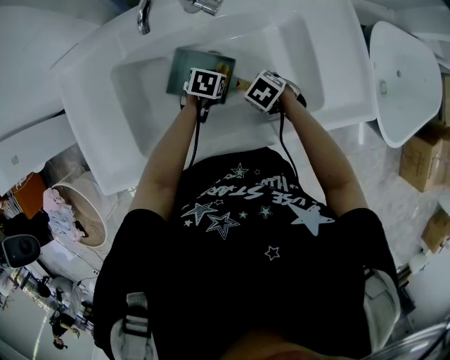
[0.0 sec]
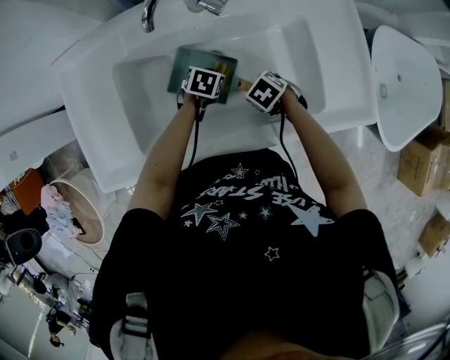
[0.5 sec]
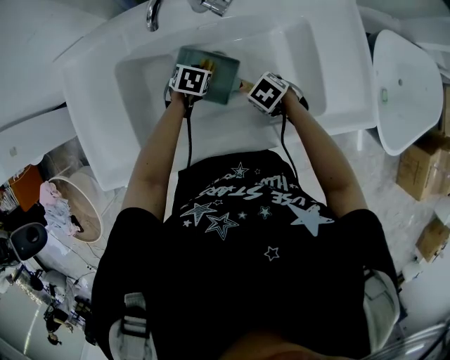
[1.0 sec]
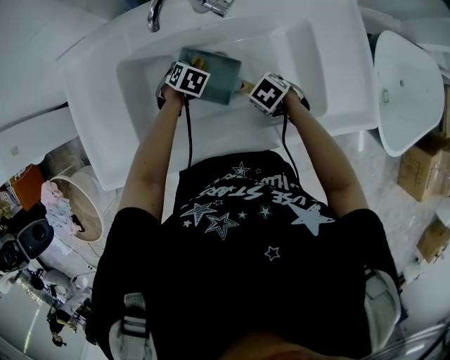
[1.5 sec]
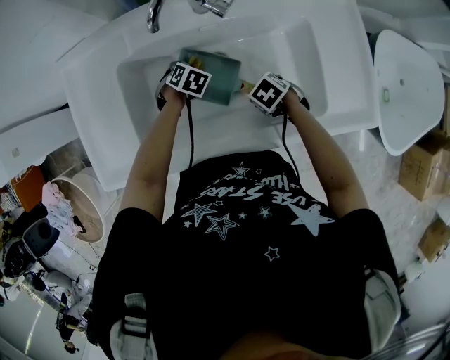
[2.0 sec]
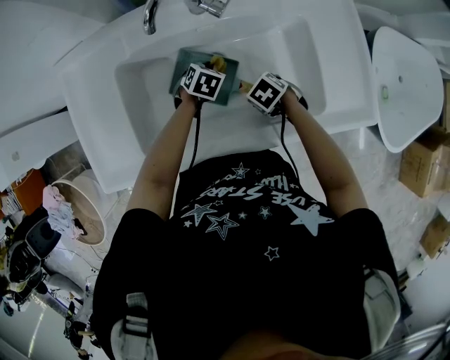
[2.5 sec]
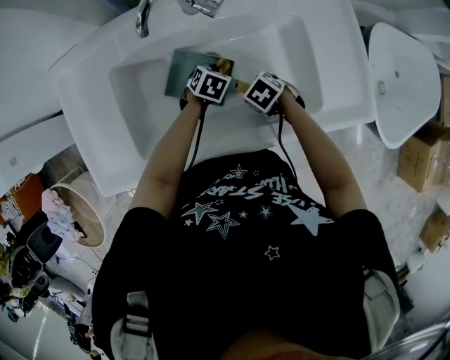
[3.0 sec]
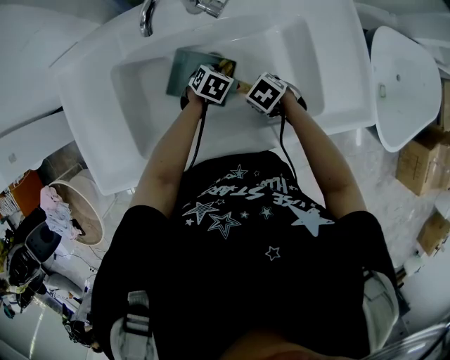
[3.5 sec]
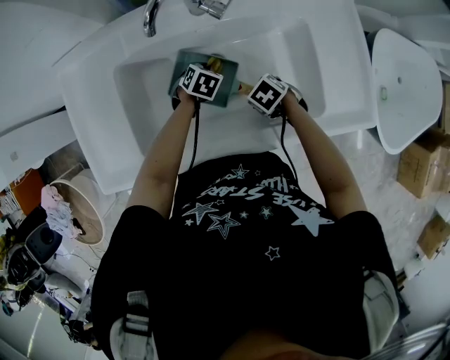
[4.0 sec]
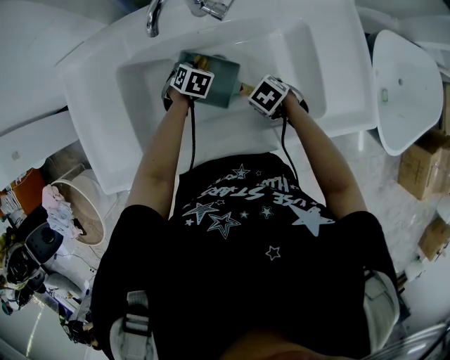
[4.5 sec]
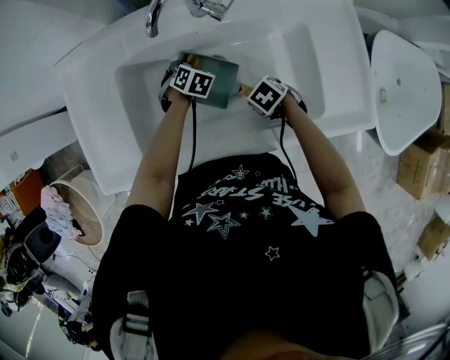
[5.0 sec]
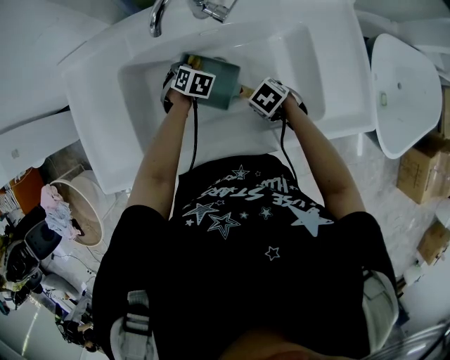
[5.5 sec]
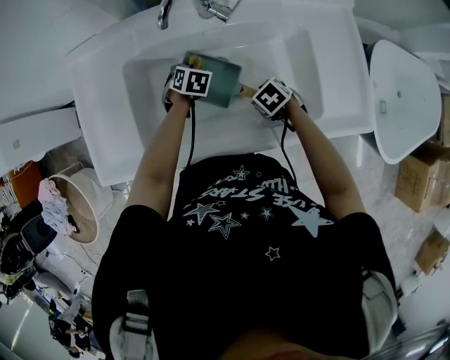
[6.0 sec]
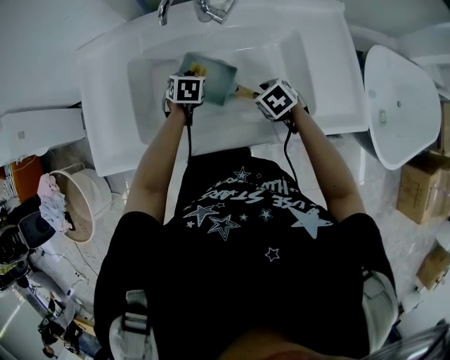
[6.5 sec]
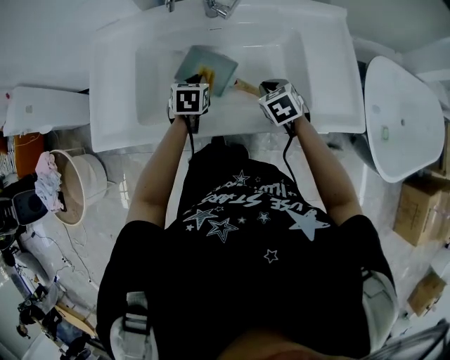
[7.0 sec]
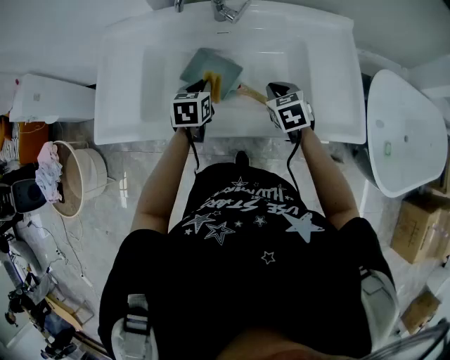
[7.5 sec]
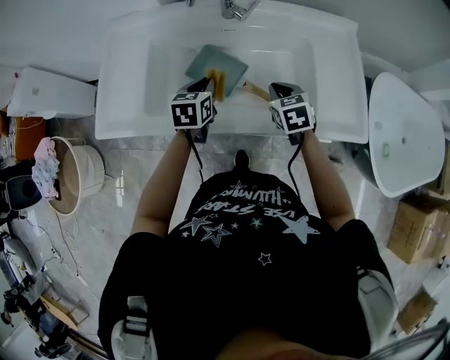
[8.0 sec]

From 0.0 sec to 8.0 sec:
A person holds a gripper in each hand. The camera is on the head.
From 0.0 sec to 2.0 sec: The left gripper ends up roughly 10 cm from where it was, and rotates some 30 degrees.
From 4.0 sec to 6.0 sec: The left gripper changes place by about 10 cm.
From 6.0 sec to 8.0 sec: The grippers both shift upward by some 15 cm. The right gripper rotates approximately 40 degrees, and closes; the left gripper turns by about 40 degrees.

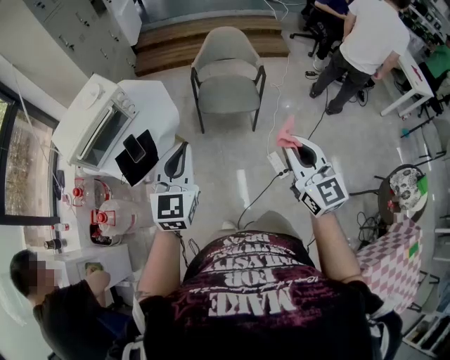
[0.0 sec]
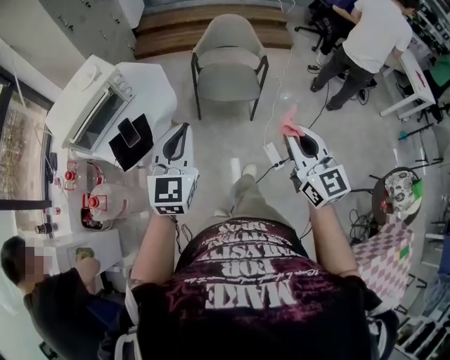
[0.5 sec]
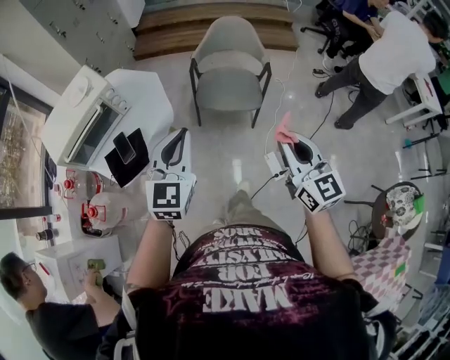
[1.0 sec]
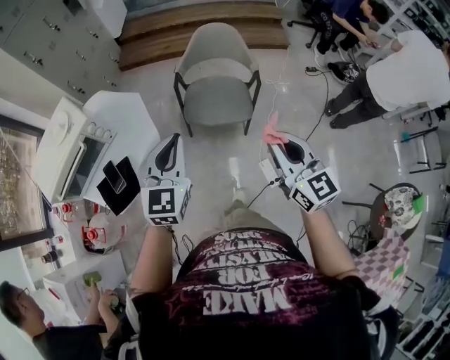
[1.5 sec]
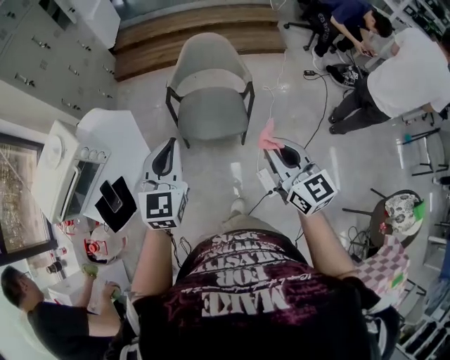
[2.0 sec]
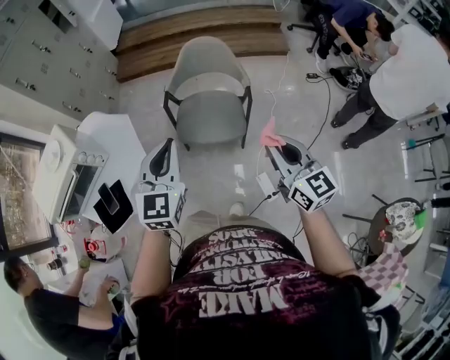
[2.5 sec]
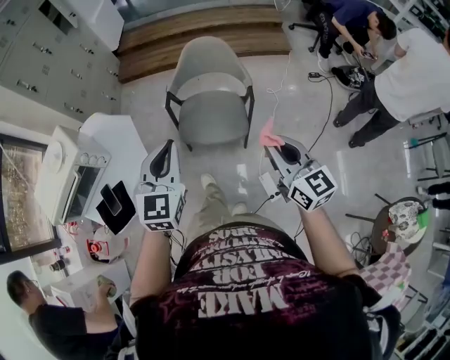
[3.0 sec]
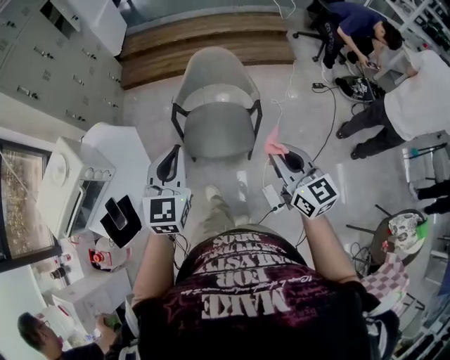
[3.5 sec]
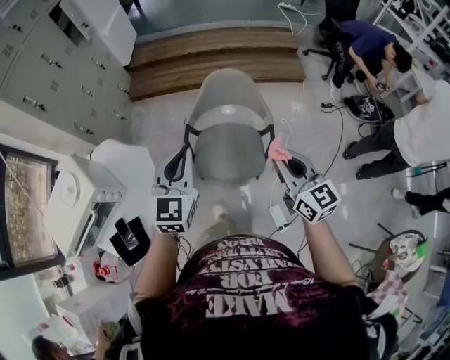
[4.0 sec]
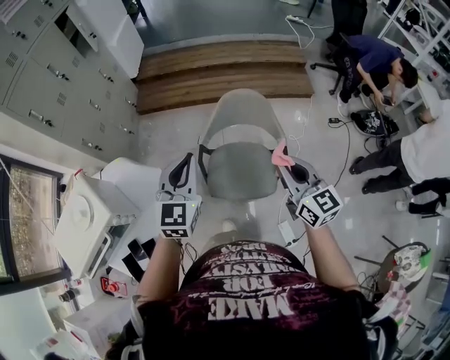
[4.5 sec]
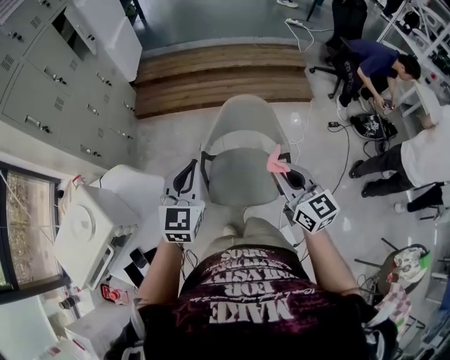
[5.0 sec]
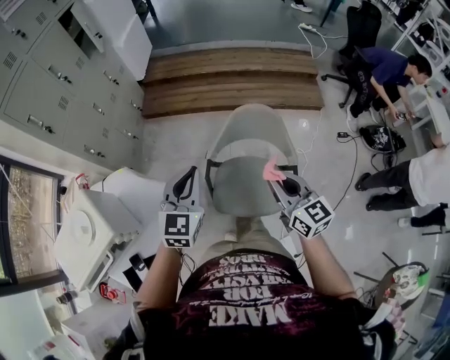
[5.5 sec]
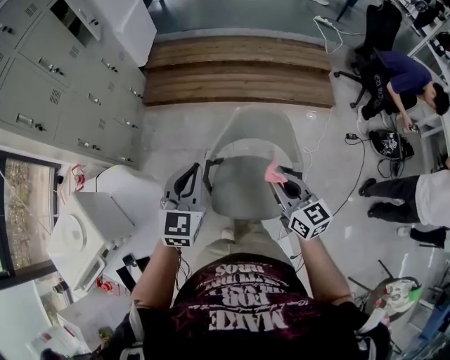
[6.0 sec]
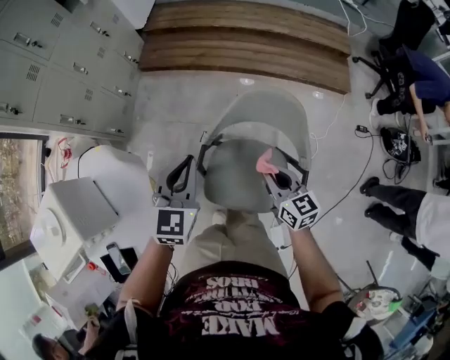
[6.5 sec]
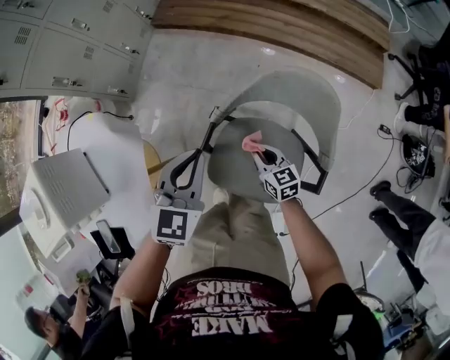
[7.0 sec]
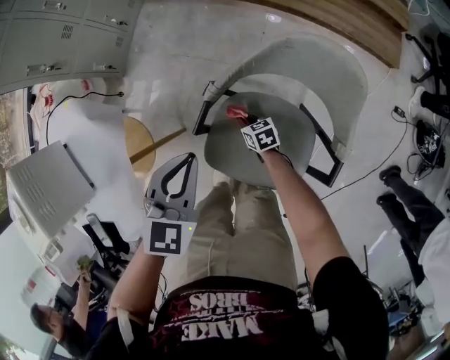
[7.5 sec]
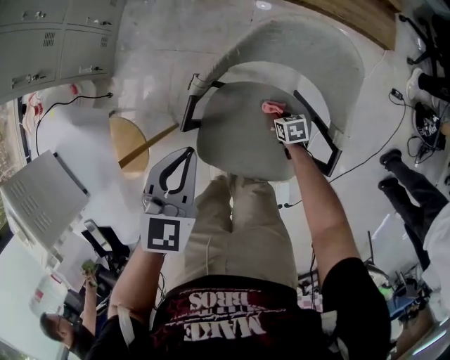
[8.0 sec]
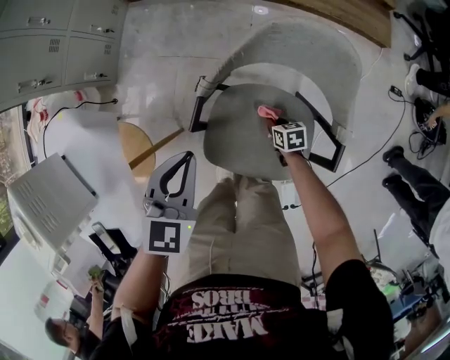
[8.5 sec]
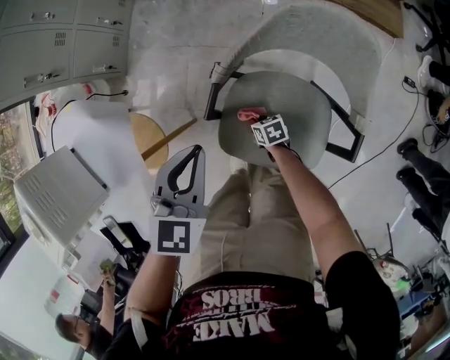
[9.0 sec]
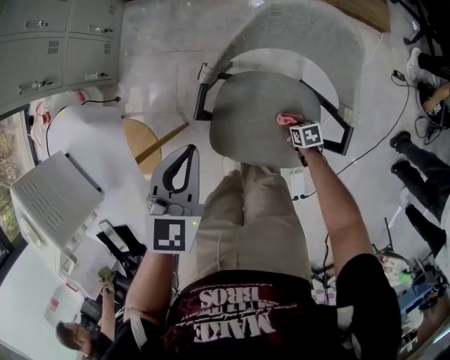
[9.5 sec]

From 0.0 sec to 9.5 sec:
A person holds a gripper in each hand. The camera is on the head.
From 0.0 sec to 2.0 sec: The grippers both shift forward and to the right by approximately 30 cm.
From 2.0 sec to 4.0 sec: Both grippers travel together forward, about 20 cm.
From 4.0 sec to 5.5 sec: The two grippers go approximately 15 cm forward and to the left.
From 5.5 sec to 7.5 sec: The left gripper shifts approximately 30 cm downward, and changes its angle by roughly 20 degrees. The right gripper travels downward by some 60 cm, and tilts its fingers approximately 40 degrees downward.
From 7.5 sec to 9.5 sec: The right gripper goes left and right, about 20 cm each way, reversing 2 times, and rotates approximately 30 degrees.

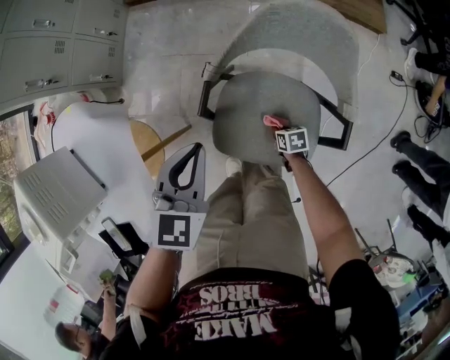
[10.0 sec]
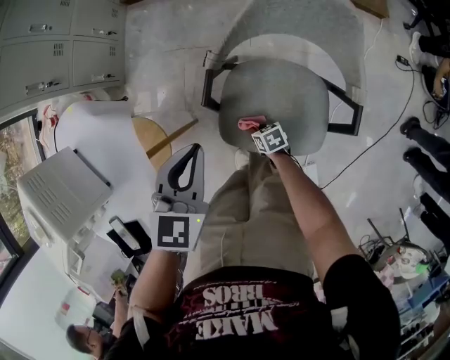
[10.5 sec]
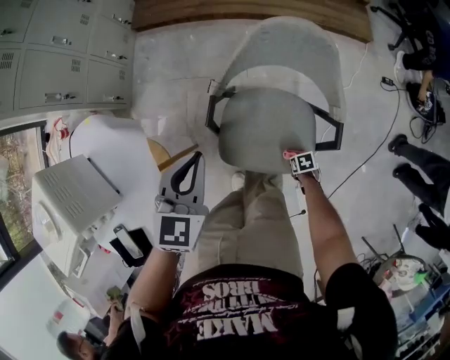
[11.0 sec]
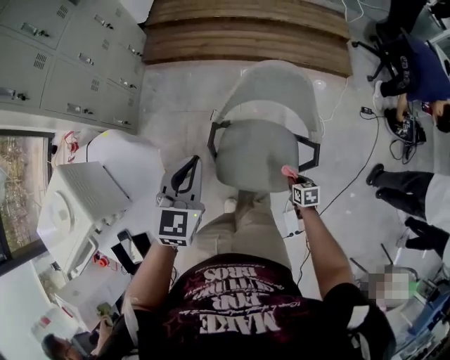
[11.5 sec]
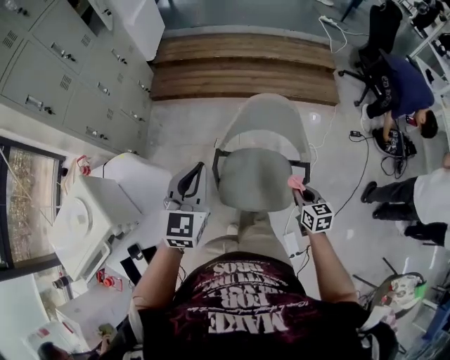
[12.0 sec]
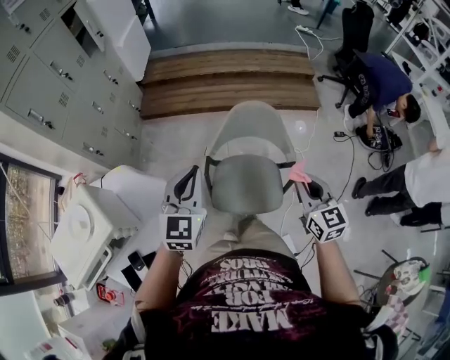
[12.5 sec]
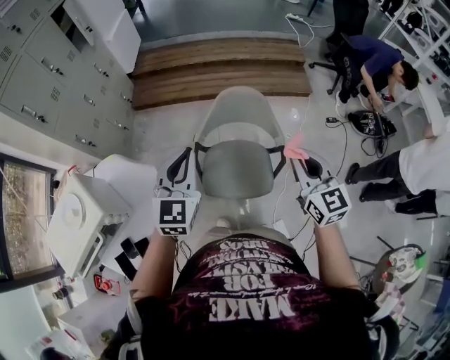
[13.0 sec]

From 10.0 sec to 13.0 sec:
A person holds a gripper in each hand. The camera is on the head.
From 10.0 sec to 11.5 sec: Both grippers travel together upward, approximately 15 cm.
From 11.5 sec to 13.0 sec: The left gripper travels upward by some 15 cm, while the right gripper shifts roughly 50 cm upward, and points its fingers some 50 degrees further upward.

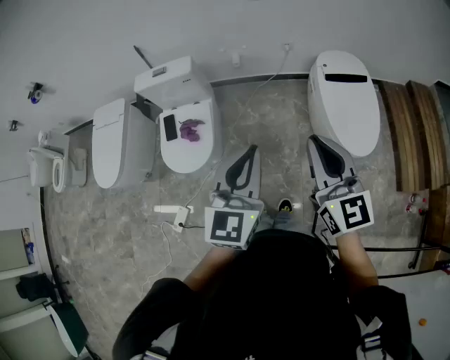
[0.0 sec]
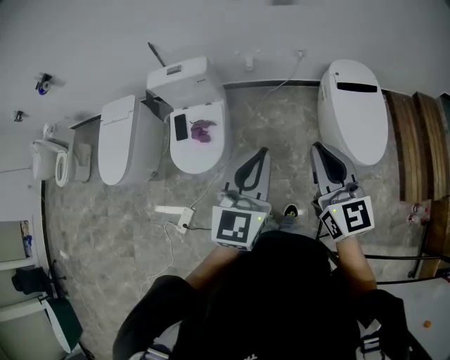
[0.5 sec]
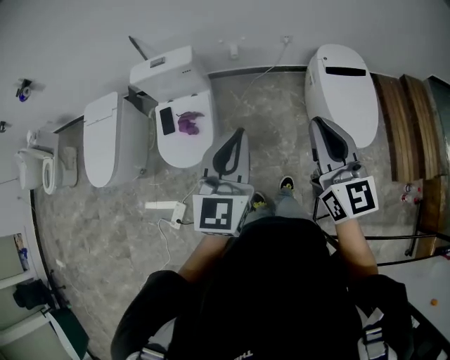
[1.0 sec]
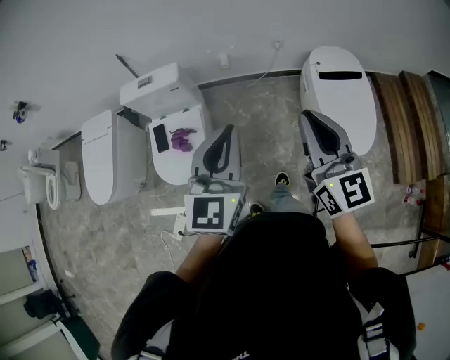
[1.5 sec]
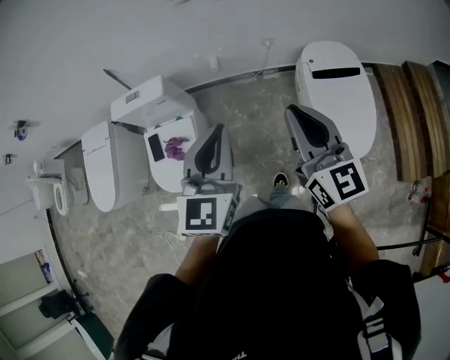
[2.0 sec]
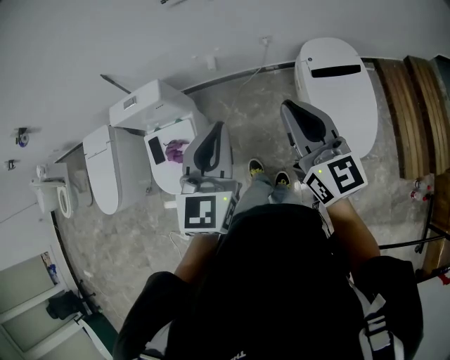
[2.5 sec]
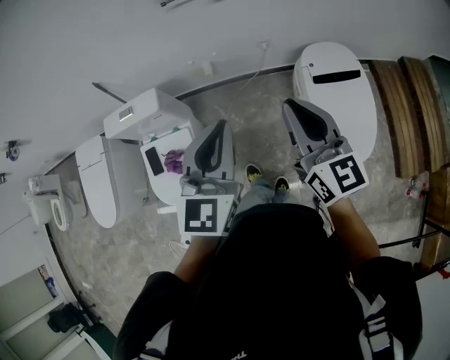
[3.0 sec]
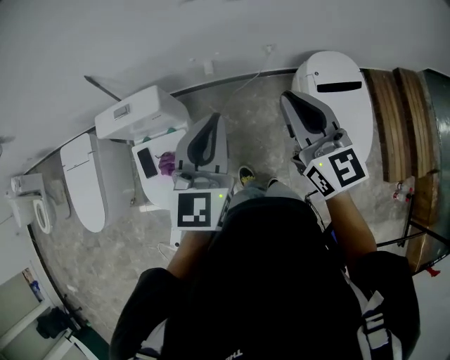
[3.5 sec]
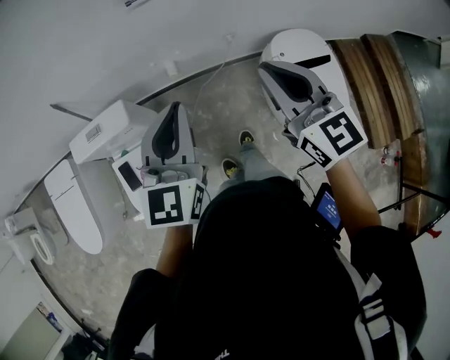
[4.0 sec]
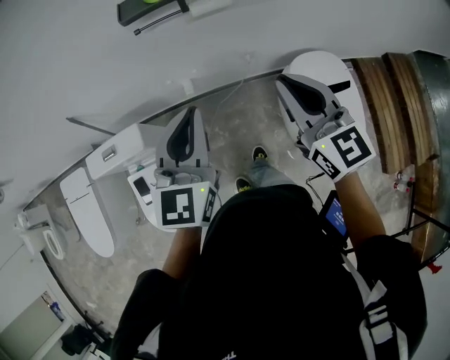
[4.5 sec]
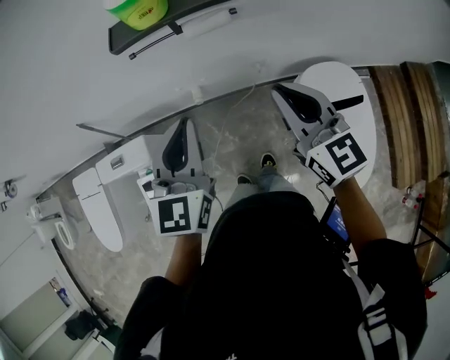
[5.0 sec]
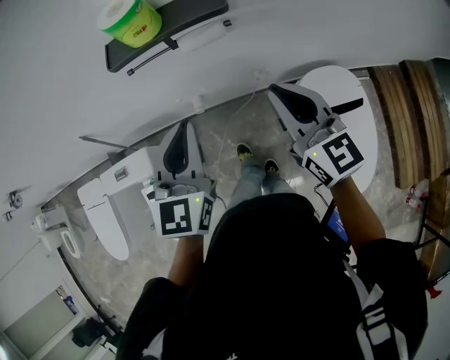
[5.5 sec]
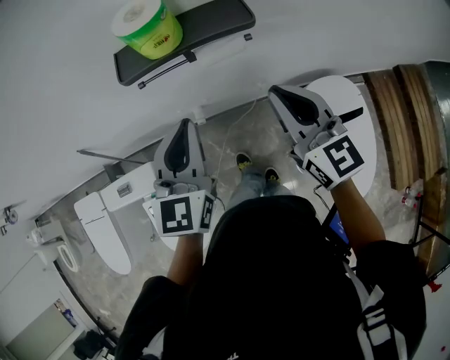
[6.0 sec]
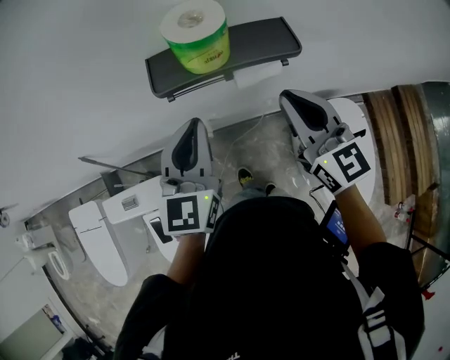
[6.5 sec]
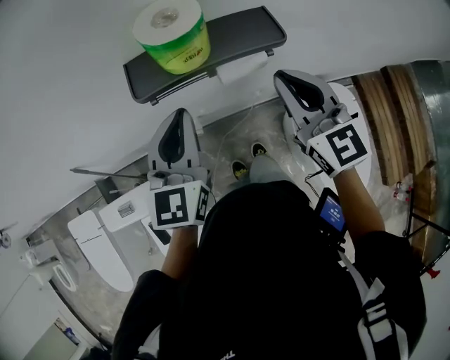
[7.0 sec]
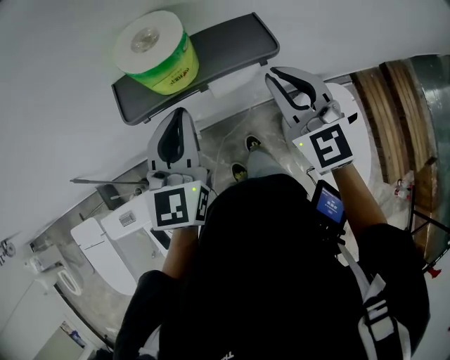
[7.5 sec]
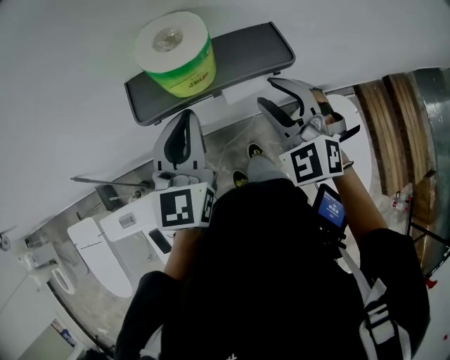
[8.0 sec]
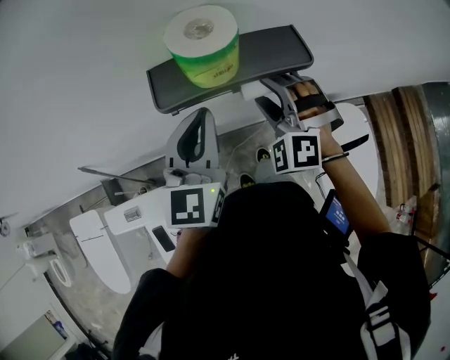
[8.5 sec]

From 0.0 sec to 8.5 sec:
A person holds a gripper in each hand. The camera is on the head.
From 0.0 sec to 2.0 sec: Both grippers travel together forward, roughly 20 cm.
From 2.0 sec to 4.0 sec: The two grippers go approximately 20 cm forward.
From 4.0 sec to 6.5 sec: The two grippers go roughly 30 cm forward.
From 6.5 sec to 8.5 sec: The right gripper shifts roughly 15 cm downward, forward and to the left, rotates around the line of its fingers by roughly 70 degrees, counterclockwise from behind, and opens up.
